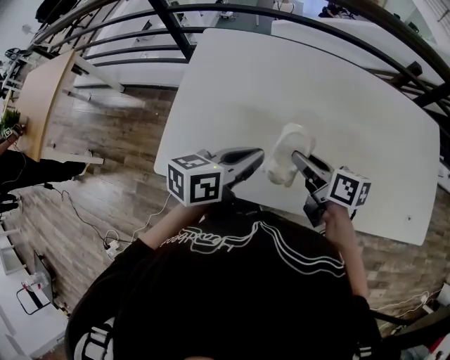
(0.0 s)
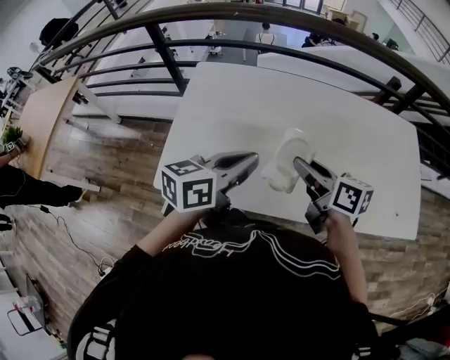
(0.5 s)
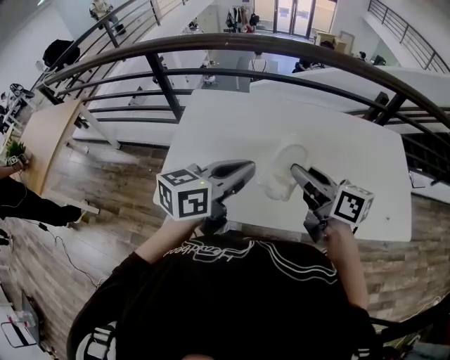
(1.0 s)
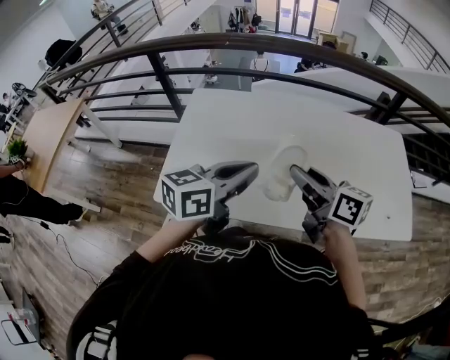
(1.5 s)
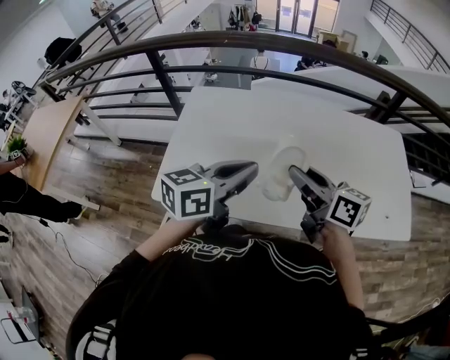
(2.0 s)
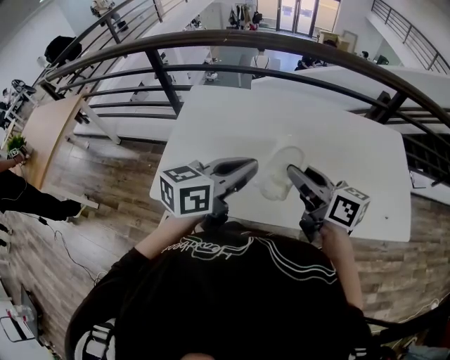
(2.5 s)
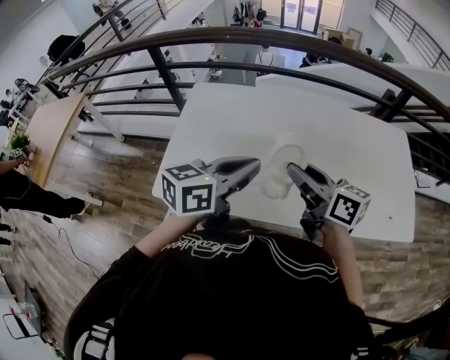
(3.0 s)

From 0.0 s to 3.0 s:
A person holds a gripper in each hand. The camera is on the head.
From 0.0 s to 1.5 s: The left gripper moves upward, backward and to the right, approximately 15 cm; the right gripper moves upward, some 20 cm, and changes its angle by roughly 20 degrees.
From 1.5 s to 3.0 s: The grippers make only small movements.

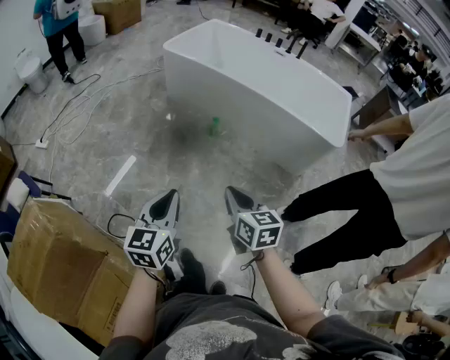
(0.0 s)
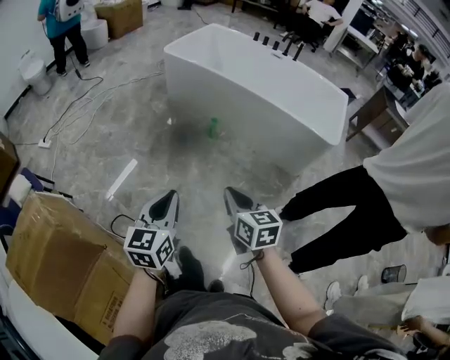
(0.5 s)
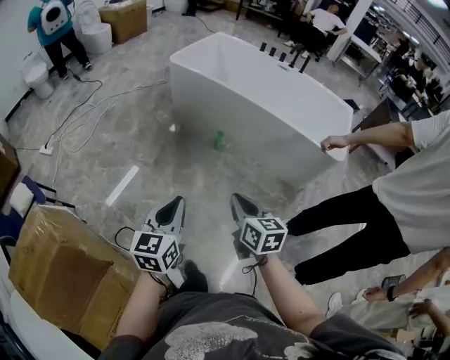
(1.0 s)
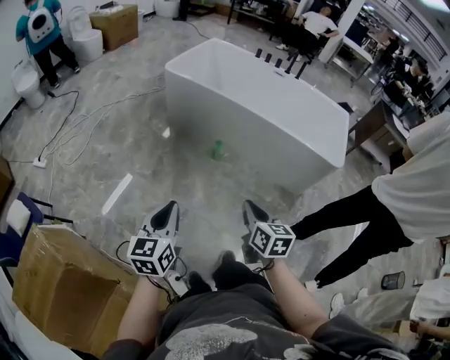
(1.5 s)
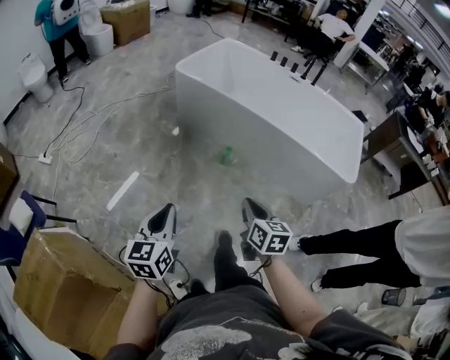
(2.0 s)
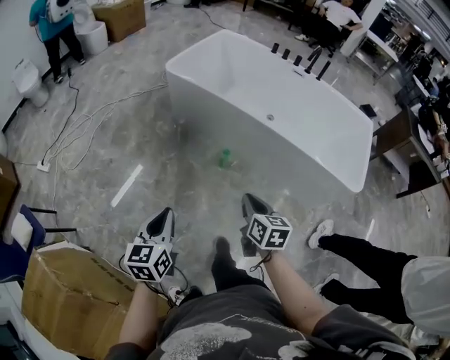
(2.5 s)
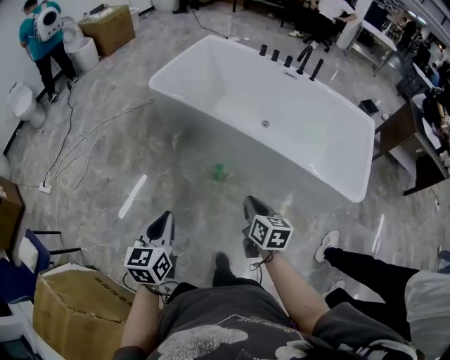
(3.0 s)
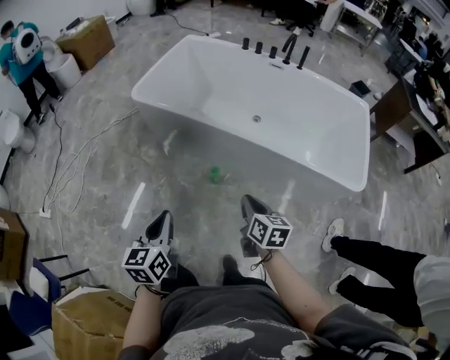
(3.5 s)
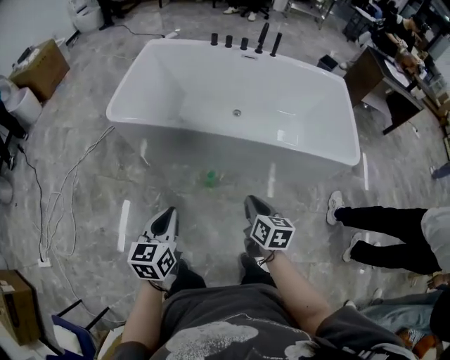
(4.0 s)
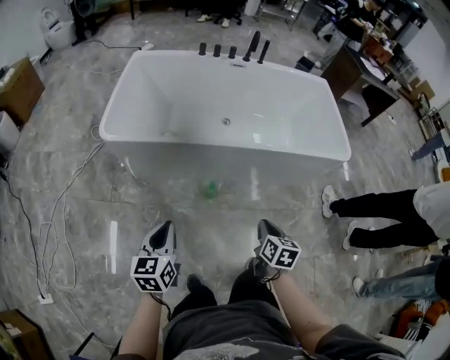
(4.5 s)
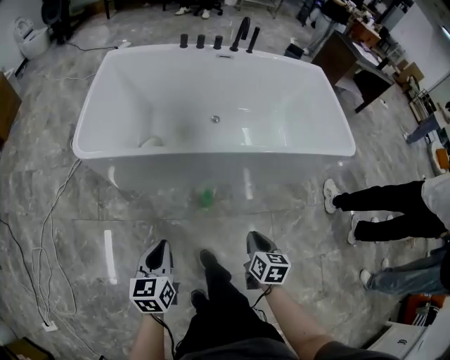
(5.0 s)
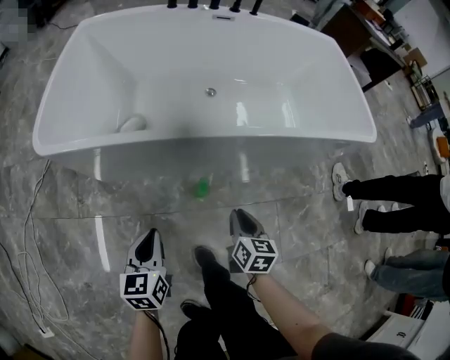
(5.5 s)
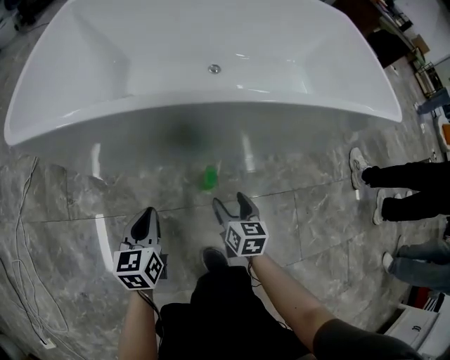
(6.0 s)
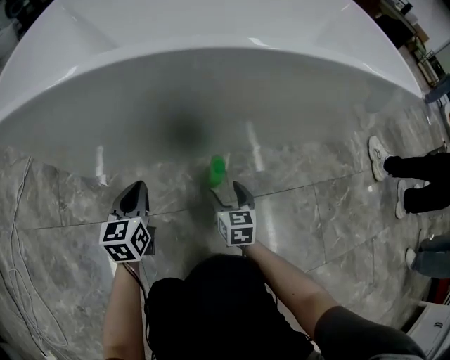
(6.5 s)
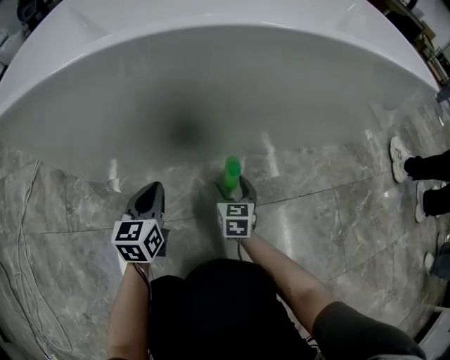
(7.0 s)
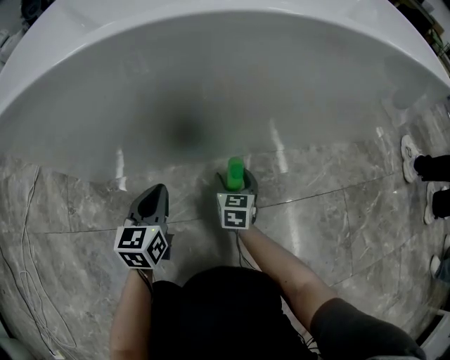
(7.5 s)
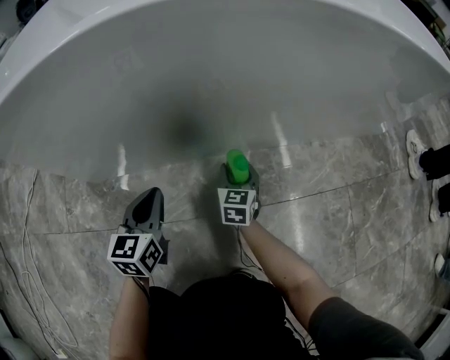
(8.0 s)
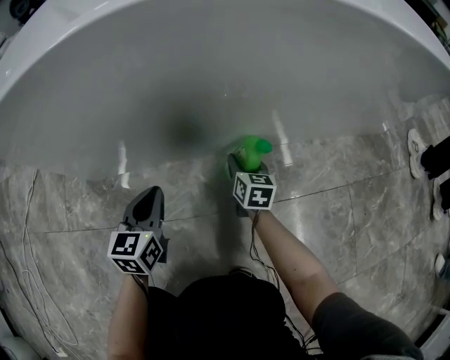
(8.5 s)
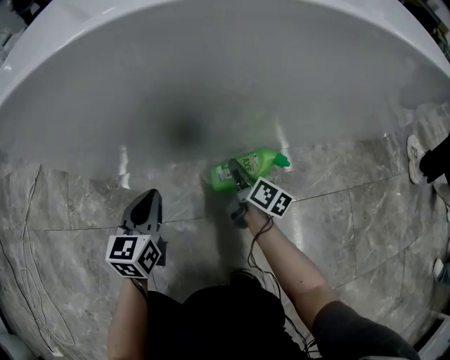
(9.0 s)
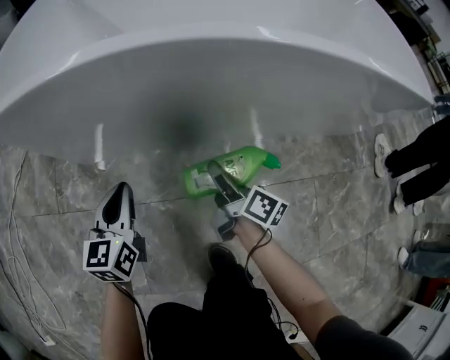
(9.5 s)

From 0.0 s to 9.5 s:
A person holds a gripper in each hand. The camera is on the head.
From 0.0 s to 2.0 s: The left gripper travels forward and to the left by roughly 15 cm, while the right gripper heads forward, covering roughly 15 cm.
From 2.0 s to 4.0 s: Both grippers move forward, roughly 35 cm. The right gripper changes its angle by roughly 30 degrees, while the left gripper changes its angle by some 30 degrees.
From 4.0 s to 5.5 s: The left gripper shifts approximately 35 cm downward, forward and to the left. The right gripper goes approximately 30 cm downward.
From 5.5 s to 7.5 s: The right gripper heads downward, covering roughly 40 cm, and opens, while the left gripper travels downward and forward by approximately 35 cm.
From 7.5 s to 9.5 s: The right gripper travels upward by some 20 cm, twists roughly 50 degrees clockwise, seen from behind, and closes. The left gripper goes roughly 10 cm upward.

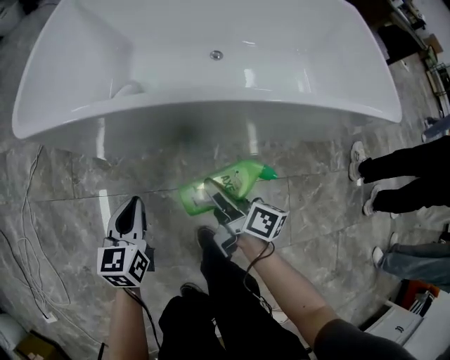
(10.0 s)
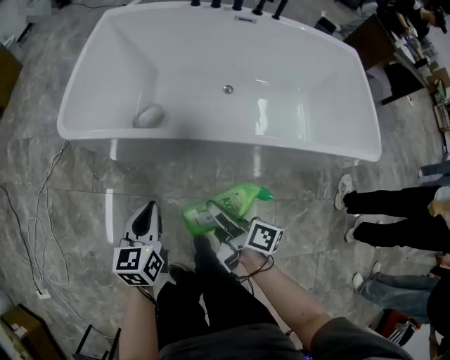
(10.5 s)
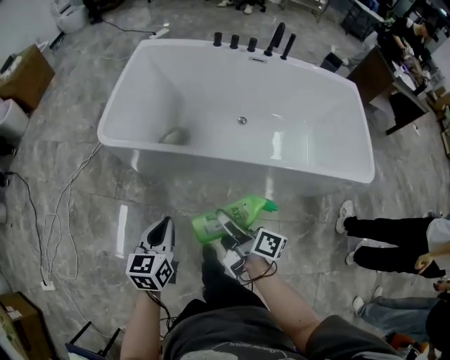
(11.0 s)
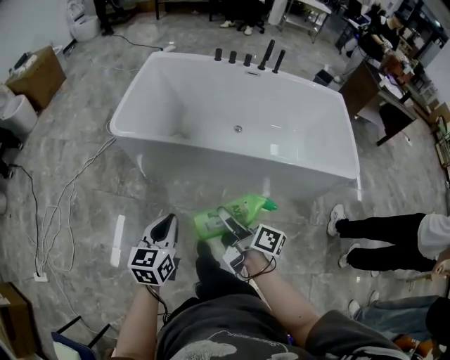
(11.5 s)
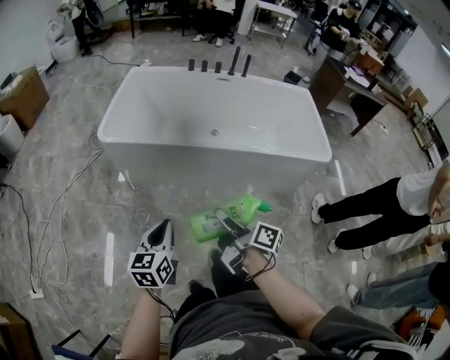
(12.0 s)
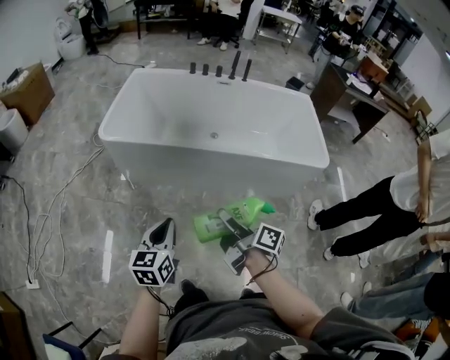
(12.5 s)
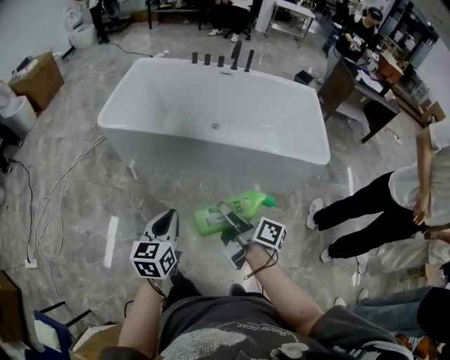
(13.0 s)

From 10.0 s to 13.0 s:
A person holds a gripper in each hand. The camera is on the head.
From 10.0 s to 11.5 s: Both grippers move upward and backward, about 40 cm.
From 11.5 s to 13.0 s: The grippers both shift backward and to the right by approximately 20 cm.

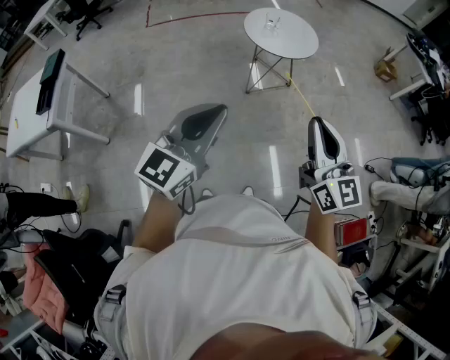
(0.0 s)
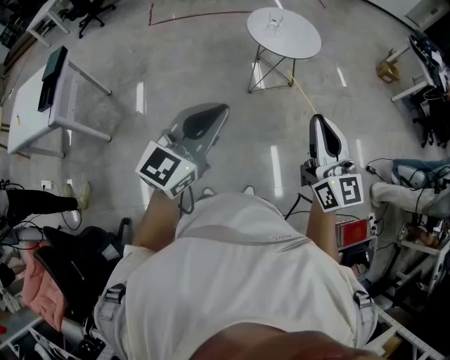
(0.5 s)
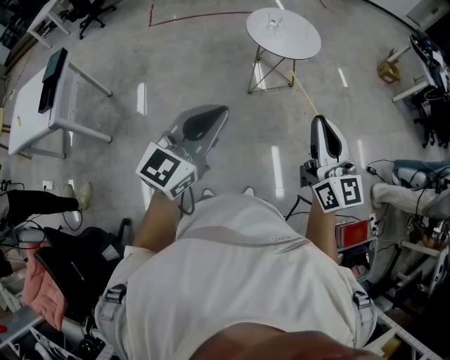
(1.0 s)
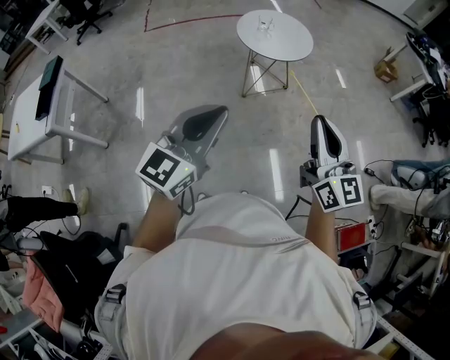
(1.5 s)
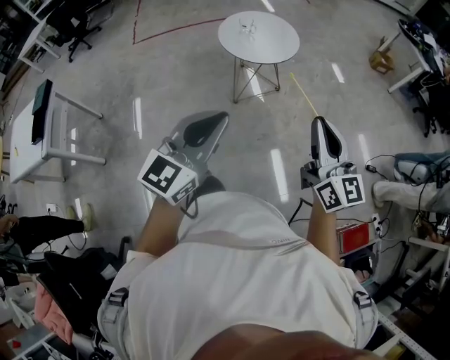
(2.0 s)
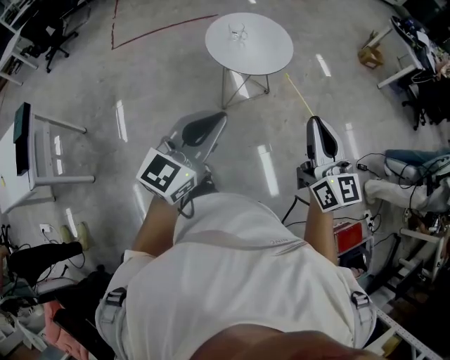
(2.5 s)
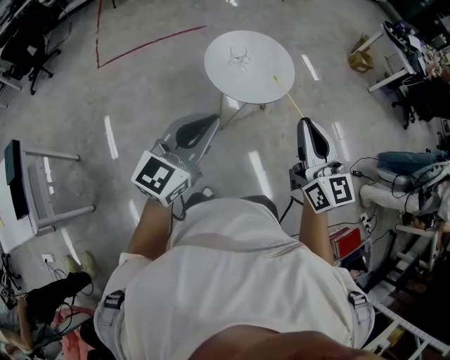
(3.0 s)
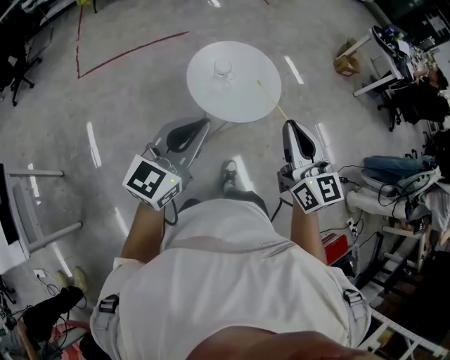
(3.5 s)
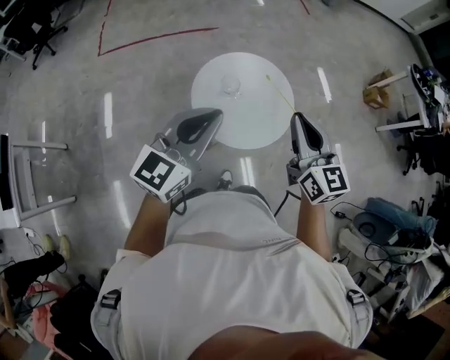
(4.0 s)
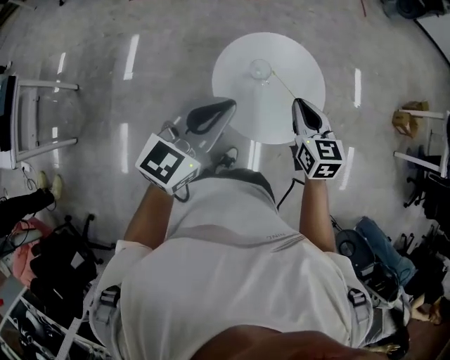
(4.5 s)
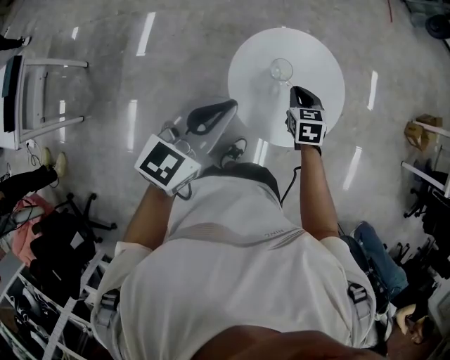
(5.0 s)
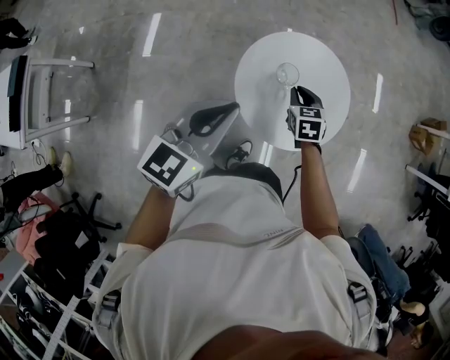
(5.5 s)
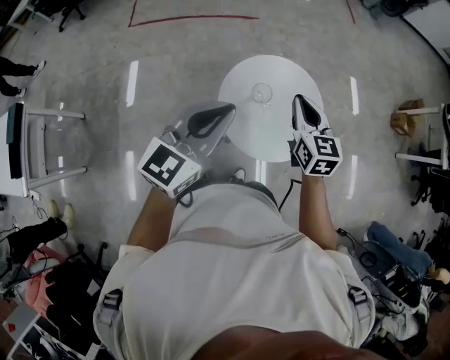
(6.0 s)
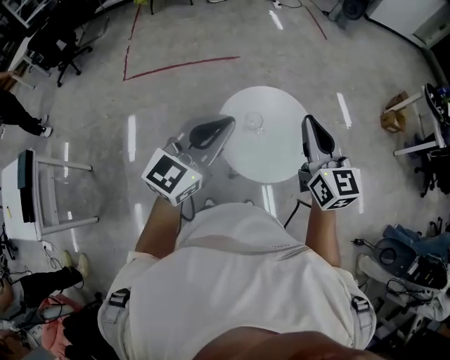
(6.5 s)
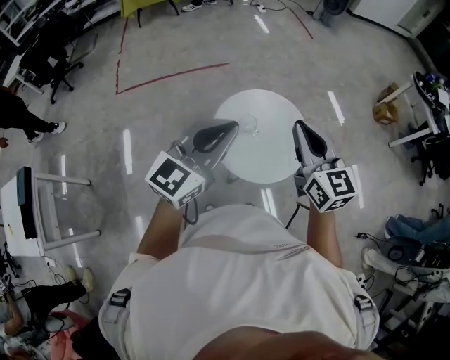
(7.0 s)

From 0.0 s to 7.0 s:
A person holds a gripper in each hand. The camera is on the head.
From 0.0 s to 2.0 s: The two grippers go roughly 20 cm to the right and forward.
From 2.0 s to 3.5 s: The two grippers travel together, forward and to the left, approximately 50 cm.
From 3.5 s to 5.0 s: The left gripper travels forward and downward by roughly 30 cm, and swivels some 30 degrees. Meanwhile the right gripper is displaced forward and downward by approximately 50 cm, and angles its fingers downward, by approximately 50 degrees.
From 5.0 s to 7.0 s: The left gripper travels upward by approximately 15 cm, and turns by some 30 degrees. Meanwhile the right gripper travels upward and backward by some 40 cm, and points its fingers about 40 degrees further upward.

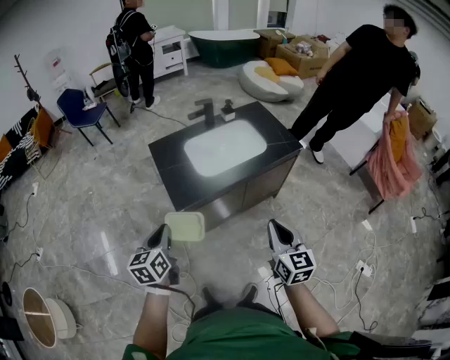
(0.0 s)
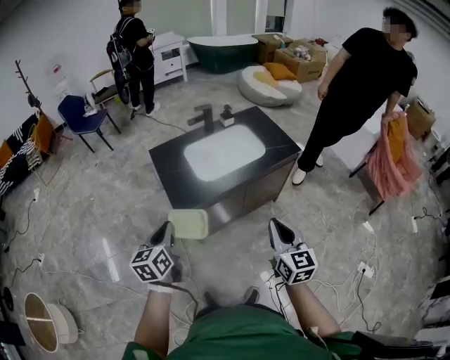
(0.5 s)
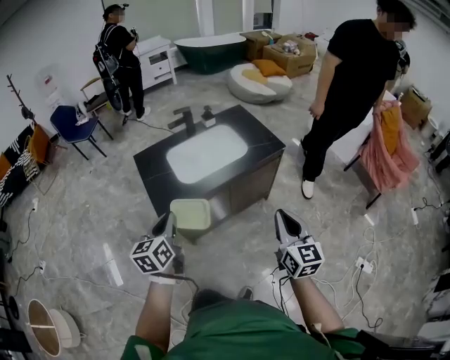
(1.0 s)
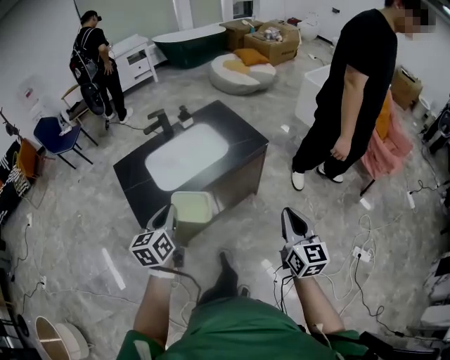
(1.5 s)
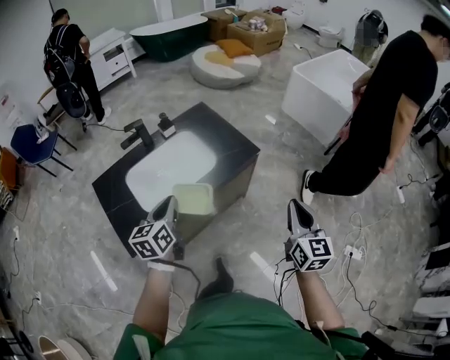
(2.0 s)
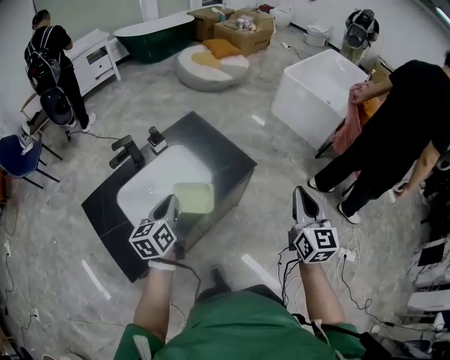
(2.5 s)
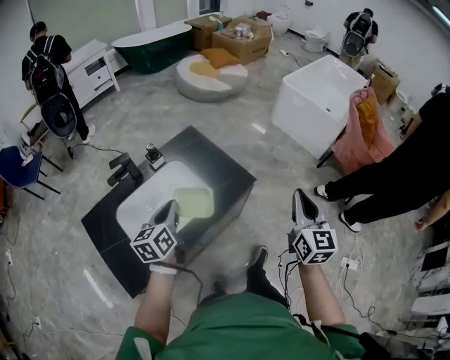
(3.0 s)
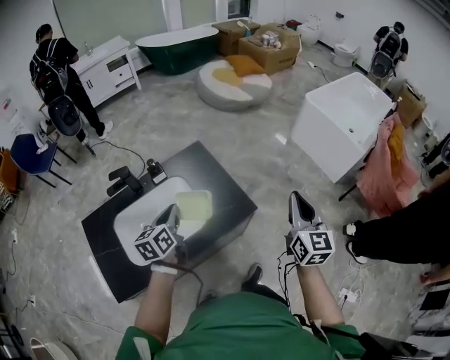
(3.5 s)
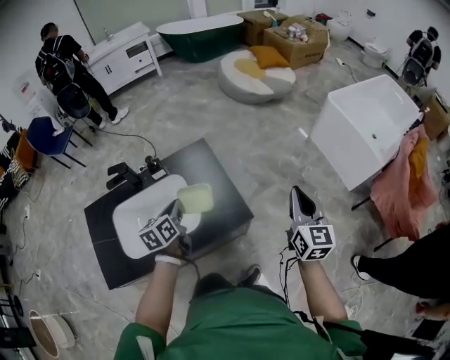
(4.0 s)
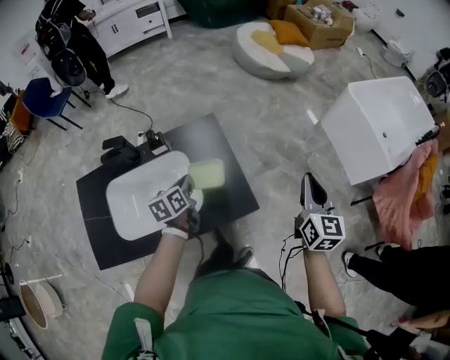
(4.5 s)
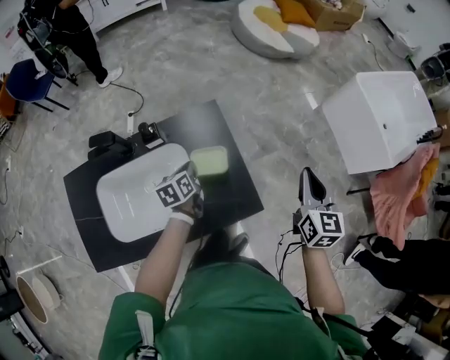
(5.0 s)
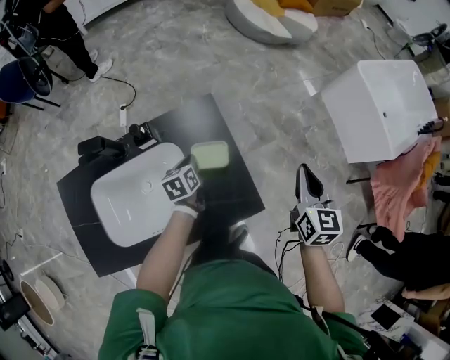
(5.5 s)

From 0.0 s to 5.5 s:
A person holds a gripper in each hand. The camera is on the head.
From 0.0 s to 2.0 s: The left gripper travels forward and to the right by some 40 cm; the right gripper shifts some 35 cm to the right and forward, and rotates approximately 20 degrees.
From 2.0 s to 3.5 s: Both grippers travel together forward, approximately 30 cm.
From 3.5 s to 5.5 s: The two grippers go roughly 35 cm forward and downward. The right gripper turns by about 20 degrees. Meanwhile the left gripper swivels roughly 30 degrees.
